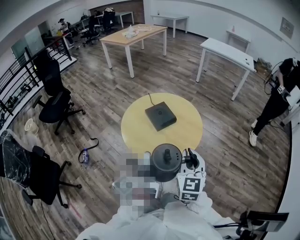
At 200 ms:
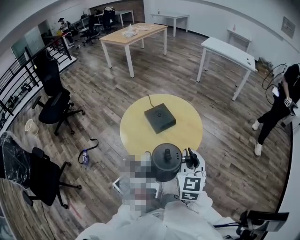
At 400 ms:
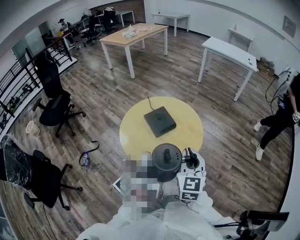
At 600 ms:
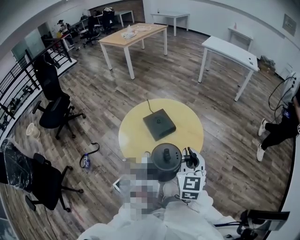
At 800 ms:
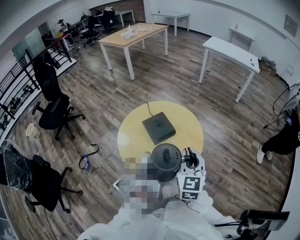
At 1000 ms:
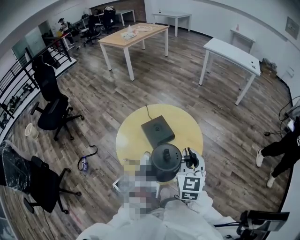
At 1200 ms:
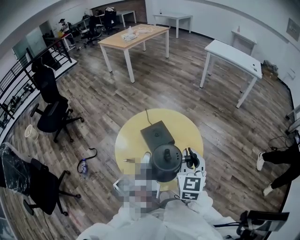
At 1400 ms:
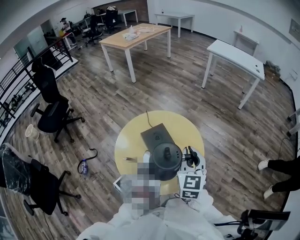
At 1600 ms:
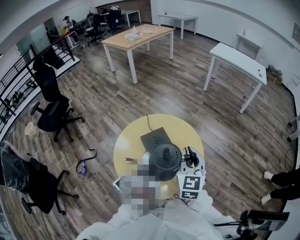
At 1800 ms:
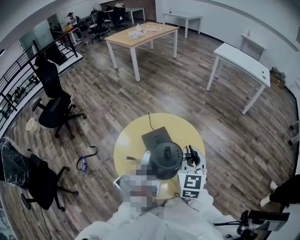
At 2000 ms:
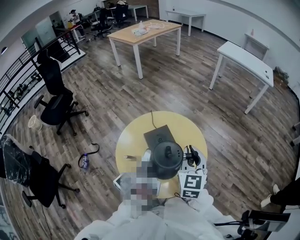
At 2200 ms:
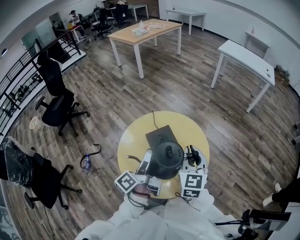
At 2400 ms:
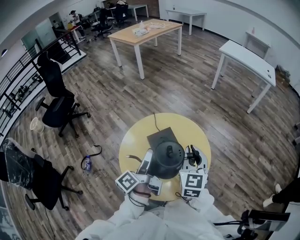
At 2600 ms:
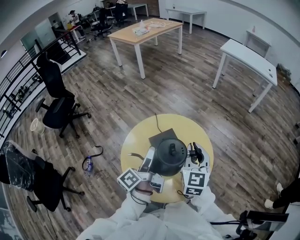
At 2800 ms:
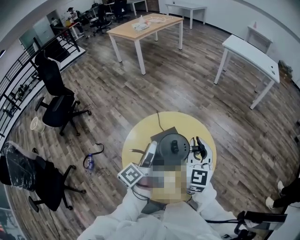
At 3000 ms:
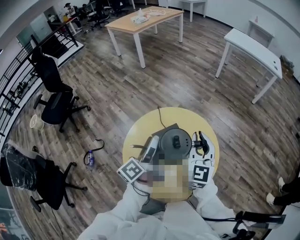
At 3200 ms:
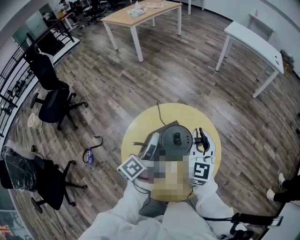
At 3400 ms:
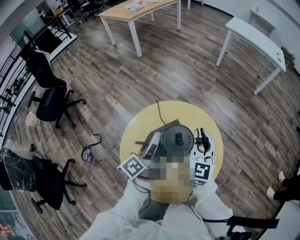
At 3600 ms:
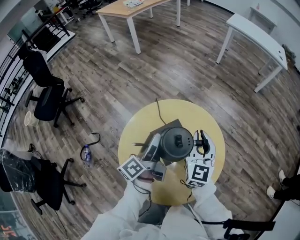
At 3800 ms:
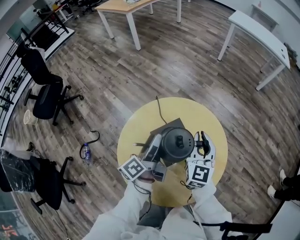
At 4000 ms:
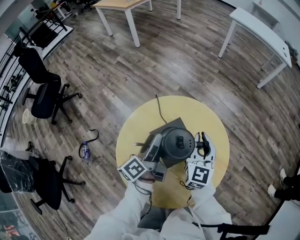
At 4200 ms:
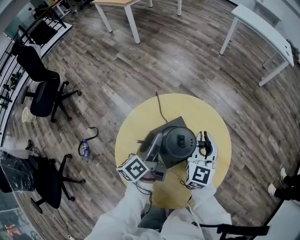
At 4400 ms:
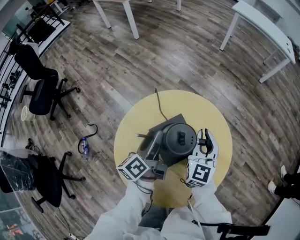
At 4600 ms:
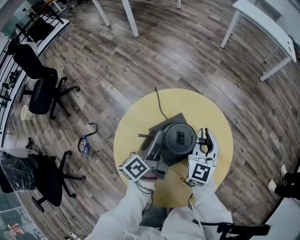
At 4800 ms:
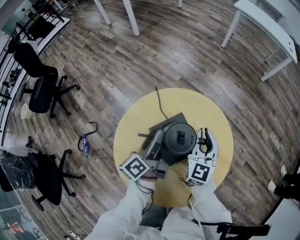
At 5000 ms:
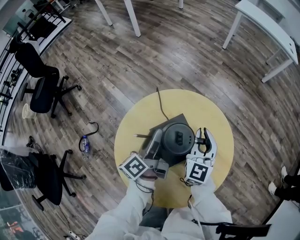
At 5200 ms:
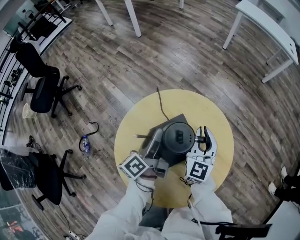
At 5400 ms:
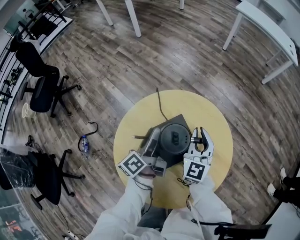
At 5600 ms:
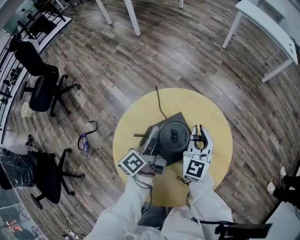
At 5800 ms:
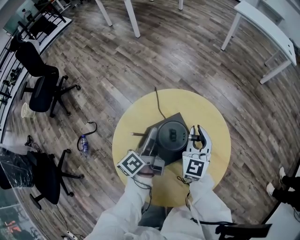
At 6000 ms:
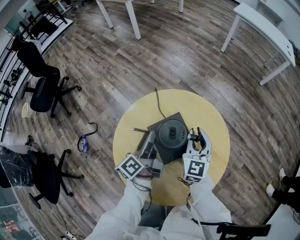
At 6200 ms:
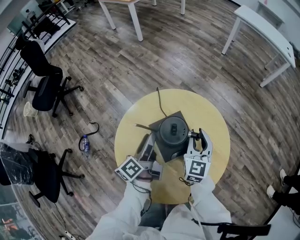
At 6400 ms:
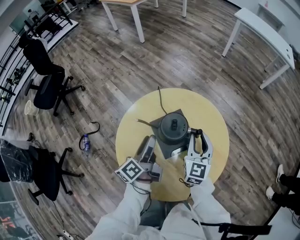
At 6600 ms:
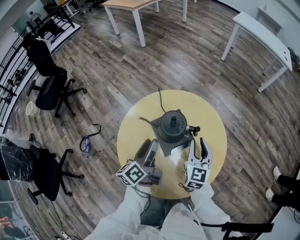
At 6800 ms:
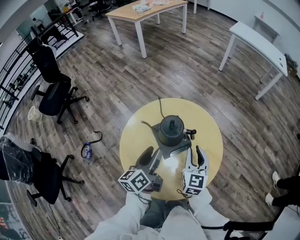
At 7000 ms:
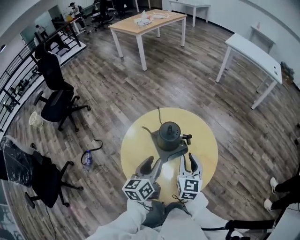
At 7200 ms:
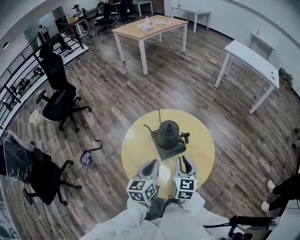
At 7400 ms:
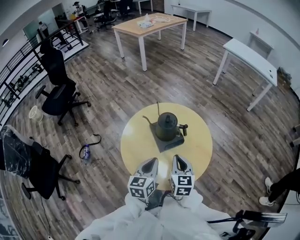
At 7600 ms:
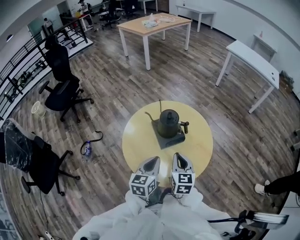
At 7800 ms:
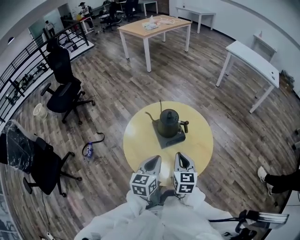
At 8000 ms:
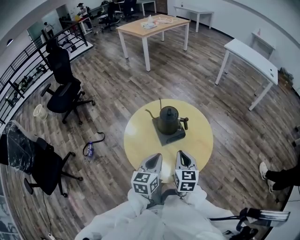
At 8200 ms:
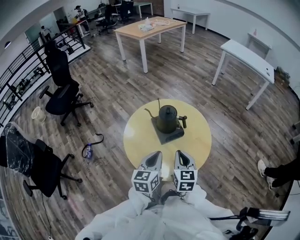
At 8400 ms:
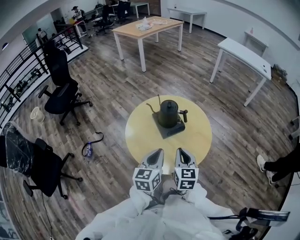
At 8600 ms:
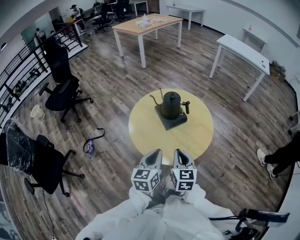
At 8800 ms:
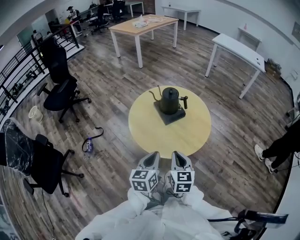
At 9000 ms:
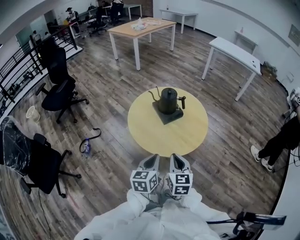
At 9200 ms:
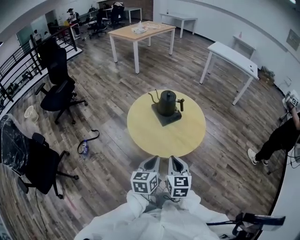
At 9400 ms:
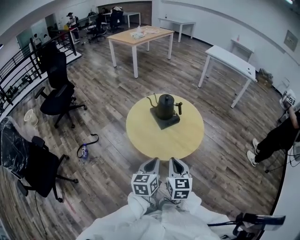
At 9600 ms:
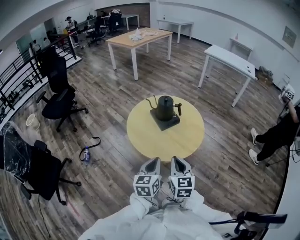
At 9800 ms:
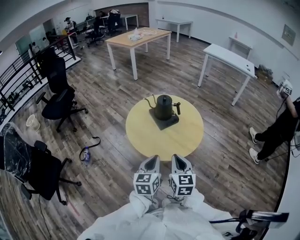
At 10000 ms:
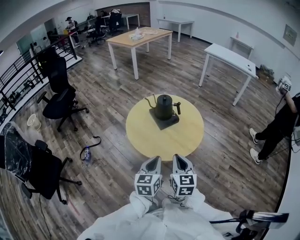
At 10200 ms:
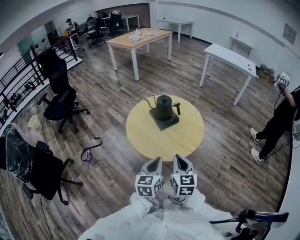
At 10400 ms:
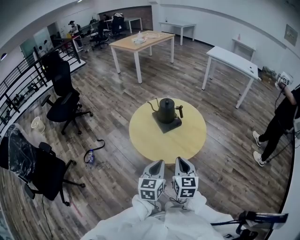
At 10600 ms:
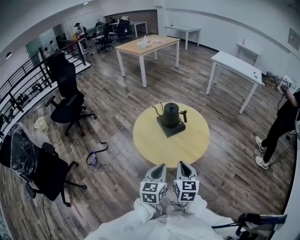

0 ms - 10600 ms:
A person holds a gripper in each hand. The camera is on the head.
0 ms - 1600 ms: Both grippers move forward, approximately 25 cm.
1600 ms - 3000 ms: The right gripper heads forward, covering roughly 10 cm; the left gripper is displaced forward and to the left by some 15 cm.
3000 ms - 4600 ms: The two grippers go about 20 cm downward and forward.
4600 ms - 6000 ms: The grippers stay close to where they were, moving slightly.
6000 ms - 7600 ms: The two grippers go some 25 cm backward. The left gripper rotates around the line of its fingers by roughly 50 degrees, clockwise from behind, and closes its fingers.
7600 ms - 9000 ms: The two grippers go some 20 cm backward.
9000 ms - 10600 ms: The left gripper shifts by about 5 cm.

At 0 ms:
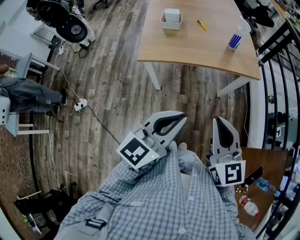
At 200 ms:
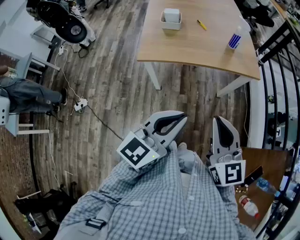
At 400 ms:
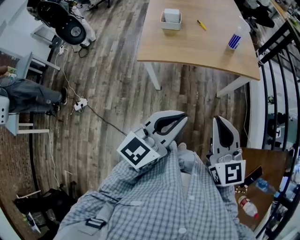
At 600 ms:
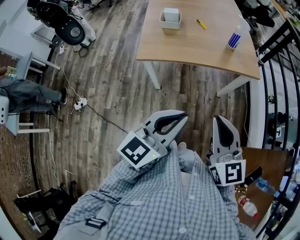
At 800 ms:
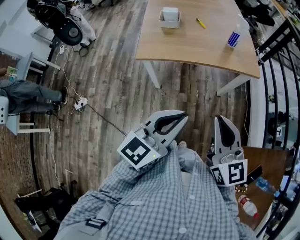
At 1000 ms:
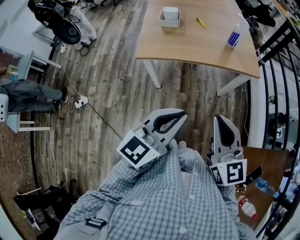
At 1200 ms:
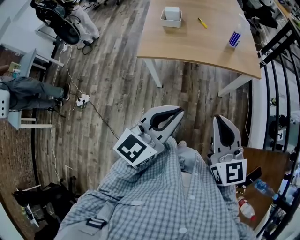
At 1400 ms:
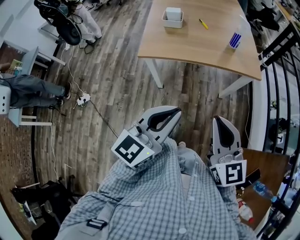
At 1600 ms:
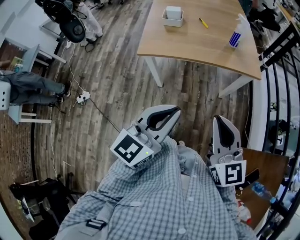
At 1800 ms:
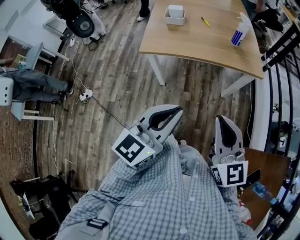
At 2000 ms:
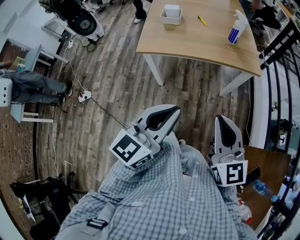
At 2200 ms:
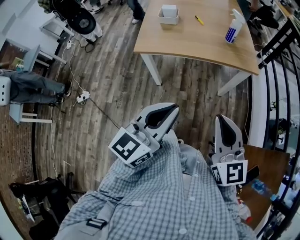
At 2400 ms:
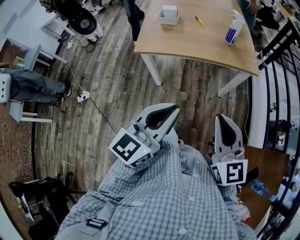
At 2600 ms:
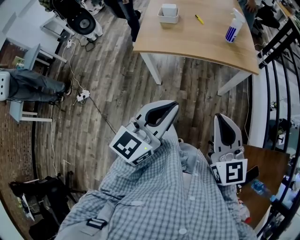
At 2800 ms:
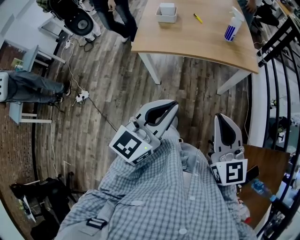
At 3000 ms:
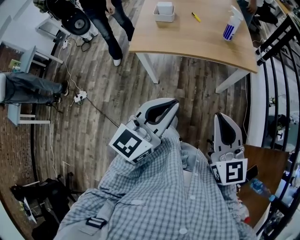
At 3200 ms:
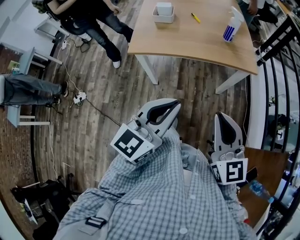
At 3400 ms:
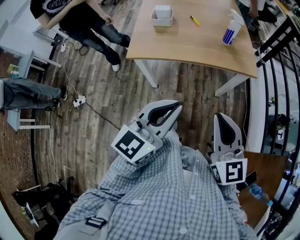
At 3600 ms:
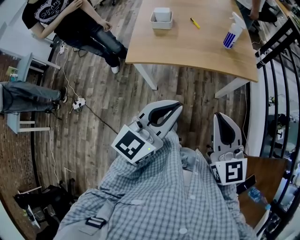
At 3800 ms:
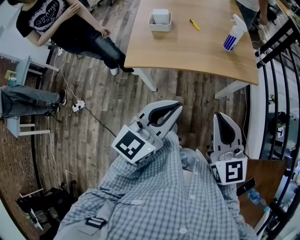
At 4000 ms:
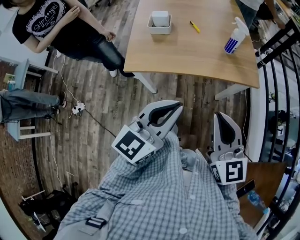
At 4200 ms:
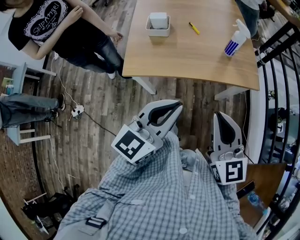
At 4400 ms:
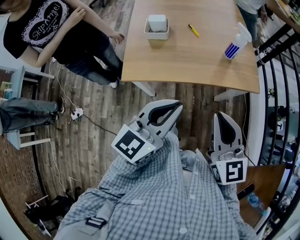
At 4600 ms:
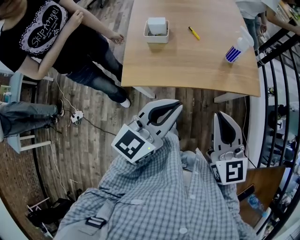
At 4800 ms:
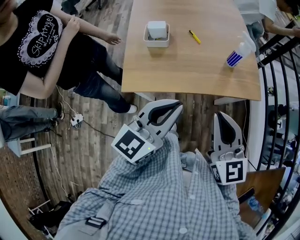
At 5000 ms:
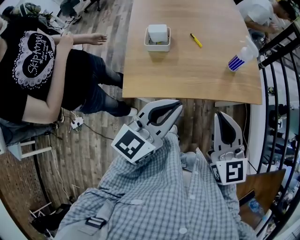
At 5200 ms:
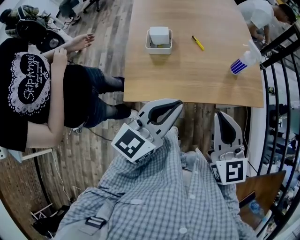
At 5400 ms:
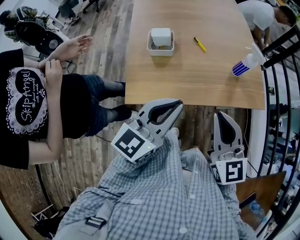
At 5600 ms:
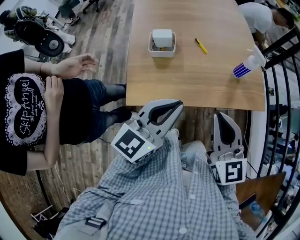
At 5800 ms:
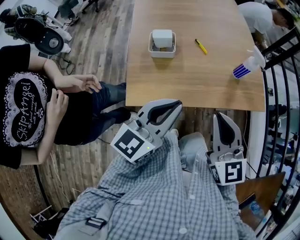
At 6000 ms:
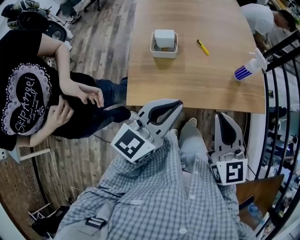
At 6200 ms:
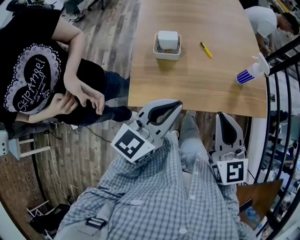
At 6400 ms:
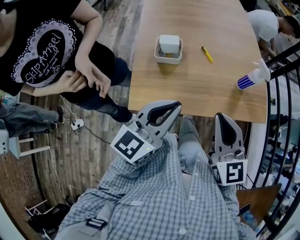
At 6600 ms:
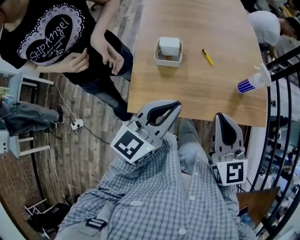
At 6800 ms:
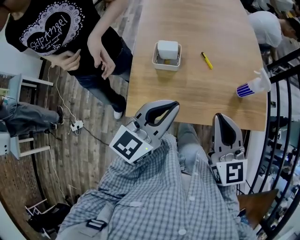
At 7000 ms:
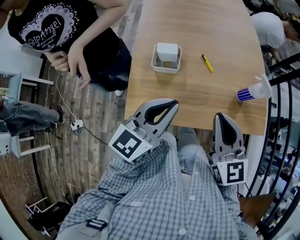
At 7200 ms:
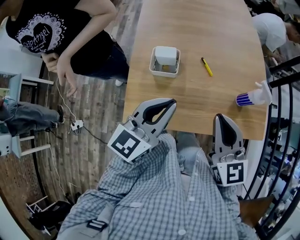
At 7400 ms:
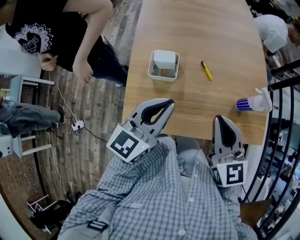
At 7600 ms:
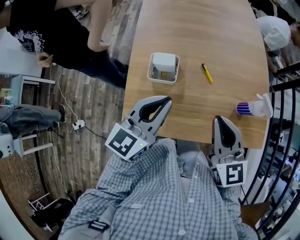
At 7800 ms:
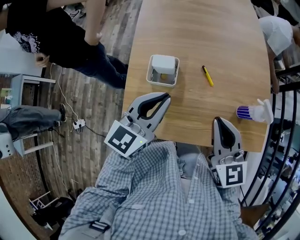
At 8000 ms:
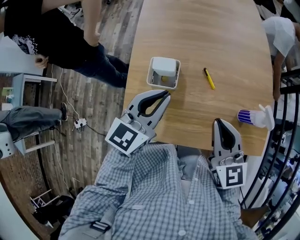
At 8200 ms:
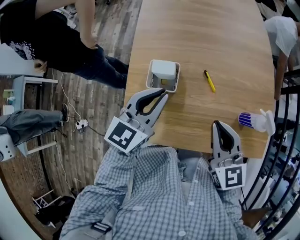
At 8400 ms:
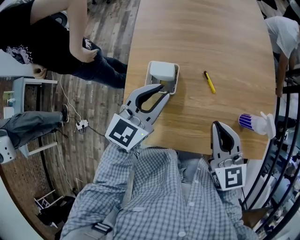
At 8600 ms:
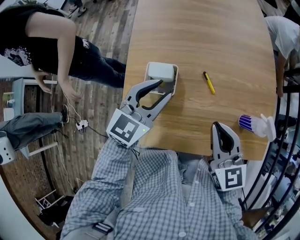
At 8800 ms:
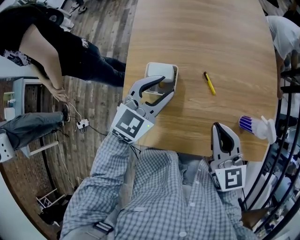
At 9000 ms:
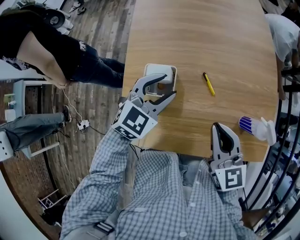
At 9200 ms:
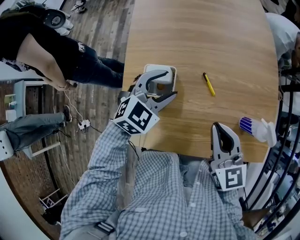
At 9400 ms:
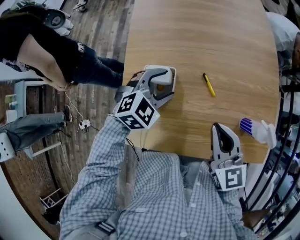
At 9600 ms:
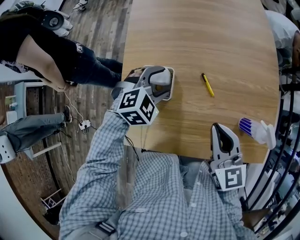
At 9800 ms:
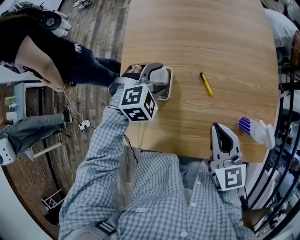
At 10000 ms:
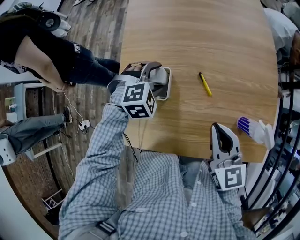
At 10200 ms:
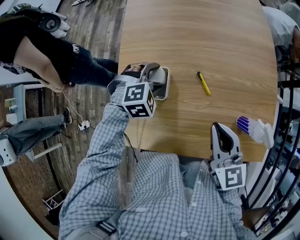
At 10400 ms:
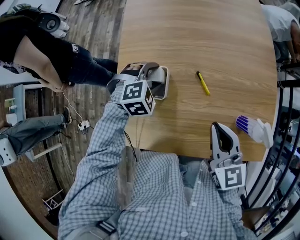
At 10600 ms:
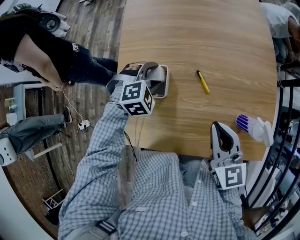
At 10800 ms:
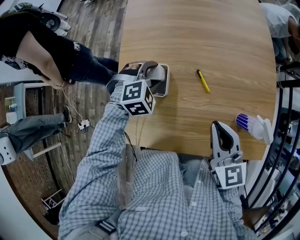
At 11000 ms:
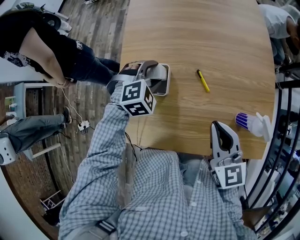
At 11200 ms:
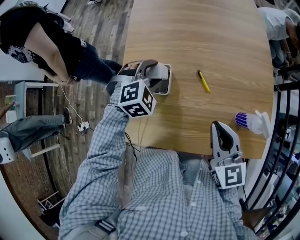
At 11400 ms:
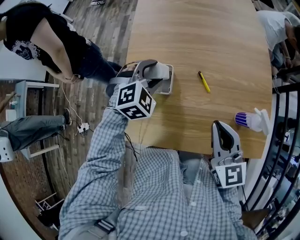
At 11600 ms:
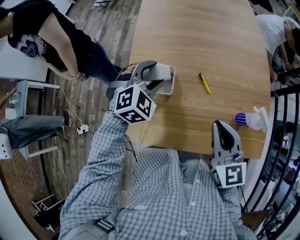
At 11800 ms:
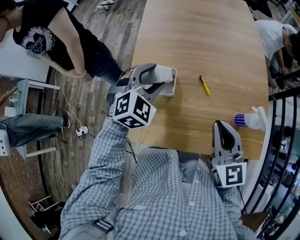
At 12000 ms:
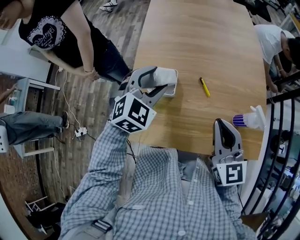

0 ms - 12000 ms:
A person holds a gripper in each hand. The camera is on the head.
0 ms - 1600 ms: The grippers move only a little.
1600 ms - 3000 ms: There are only small adjustments of the grippers.
3000 ms - 4400 ms: Both grippers move forward, some 15 cm.
4400 ms - 6000 ms: Both grippers move forward and to the left, approximately 15 cm.
6000 ms - 7600 ms: The two grippers go roughly 15 cm forward.
7600 ms - 9000 ms: The left gripper moves forward and downward, some 15 cm, turns by some 40 degrees, and opens up; the right gripper shifts some 5 cm downward and forward.
9000 ms - 10400 ms: The left gripper moves downward, some 10 cm, and tilts its fingers approximately 30 degrees downward.
10400 ms - 12000 ms: The right gripper travels upward by approximately 5 cm; the left gripper is displaced upward by roughly 15 cm, and angles its fingers upward, by some 30 degrees.

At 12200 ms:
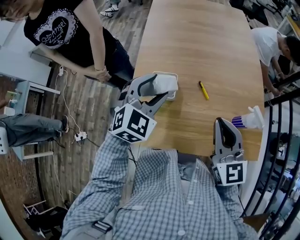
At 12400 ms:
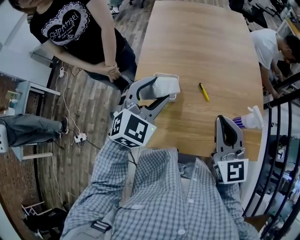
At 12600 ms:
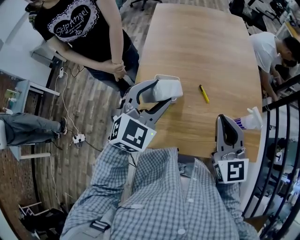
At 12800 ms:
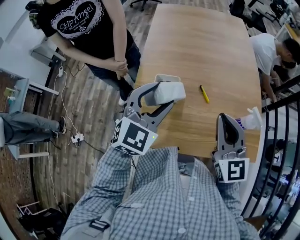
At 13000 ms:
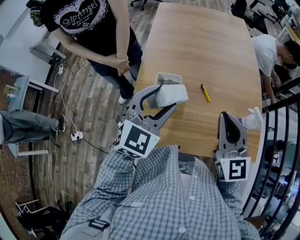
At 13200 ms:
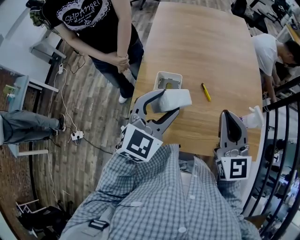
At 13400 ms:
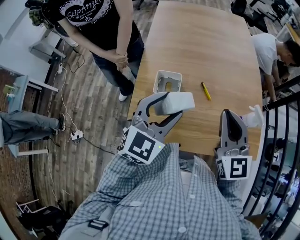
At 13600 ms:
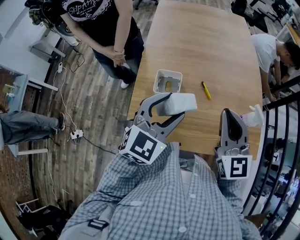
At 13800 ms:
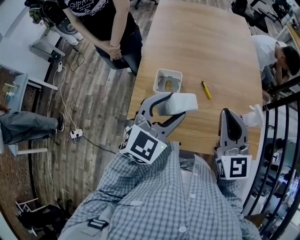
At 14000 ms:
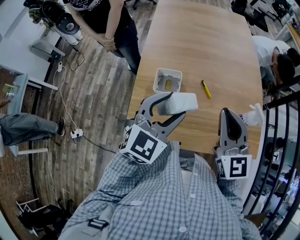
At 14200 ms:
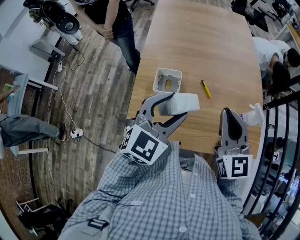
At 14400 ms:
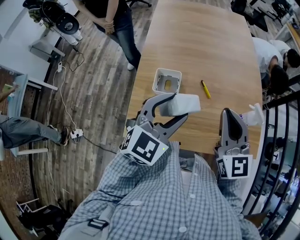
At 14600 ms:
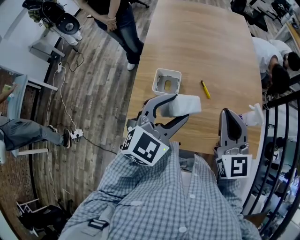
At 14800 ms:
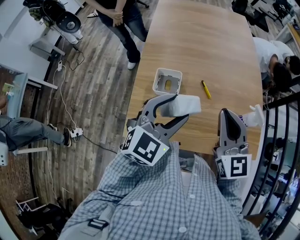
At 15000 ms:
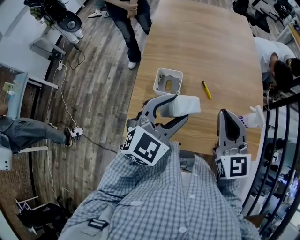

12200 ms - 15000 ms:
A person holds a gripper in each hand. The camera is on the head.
12200 ms - 13600 ms: The left gripper travels backward by about 10 cm.
13600 ms - 15000 ms: There are only small adjustments of the grippers.
